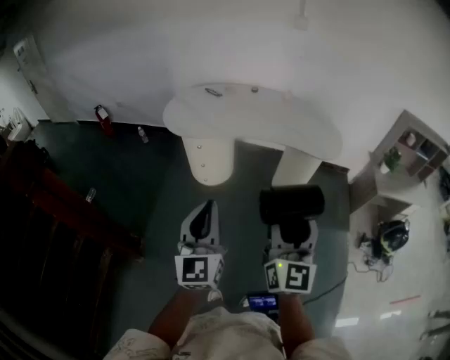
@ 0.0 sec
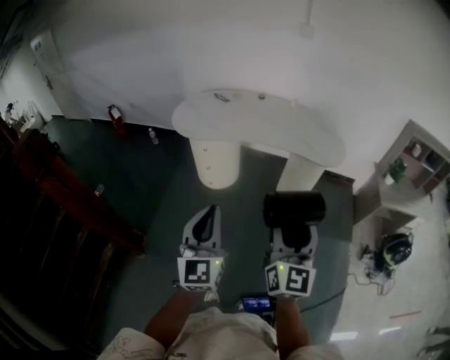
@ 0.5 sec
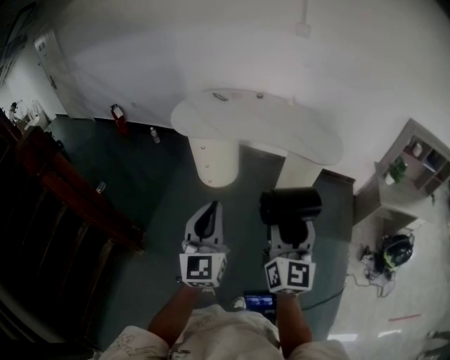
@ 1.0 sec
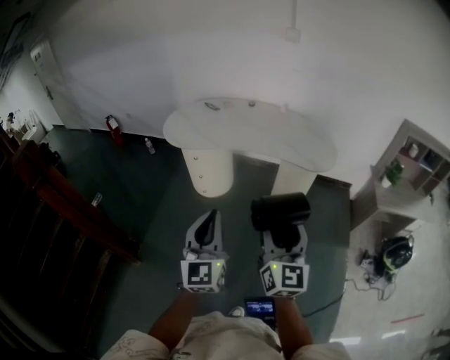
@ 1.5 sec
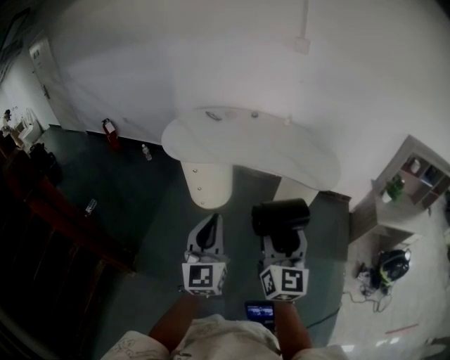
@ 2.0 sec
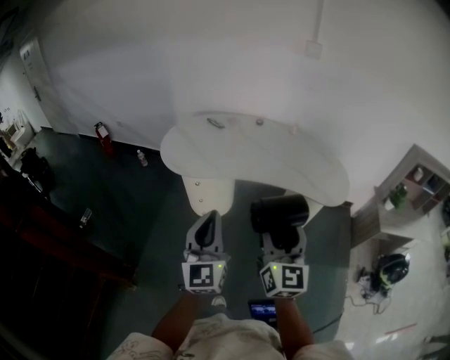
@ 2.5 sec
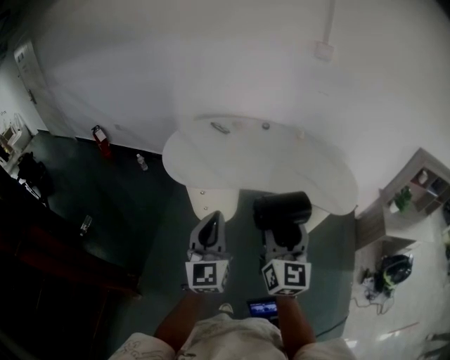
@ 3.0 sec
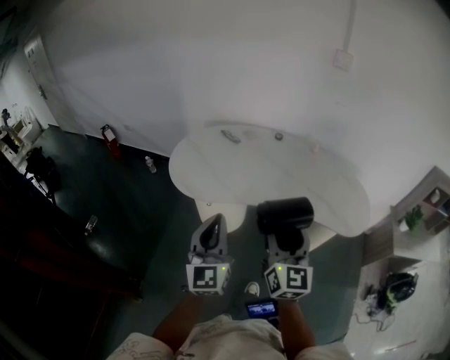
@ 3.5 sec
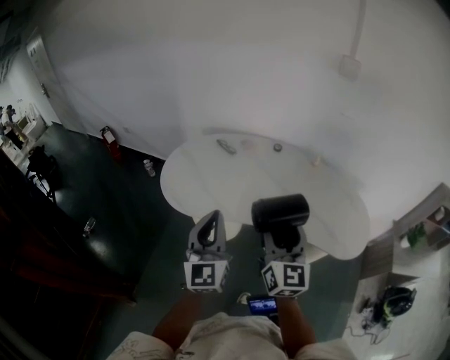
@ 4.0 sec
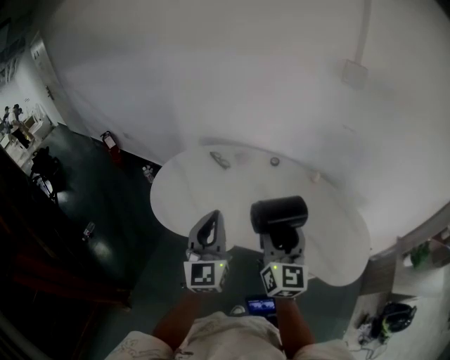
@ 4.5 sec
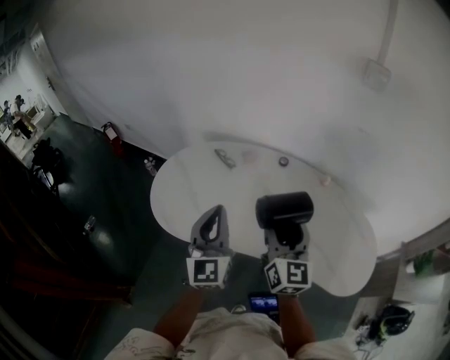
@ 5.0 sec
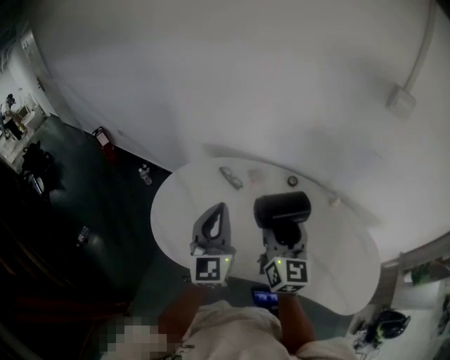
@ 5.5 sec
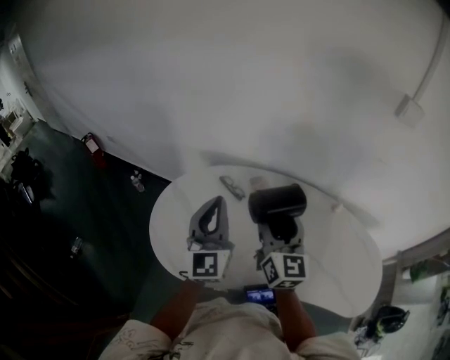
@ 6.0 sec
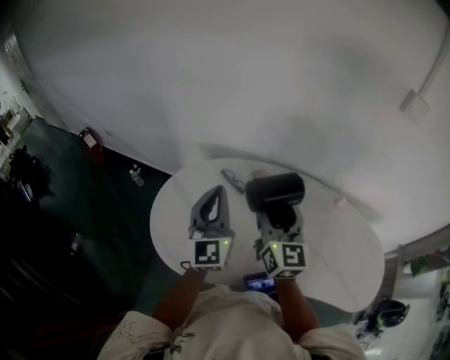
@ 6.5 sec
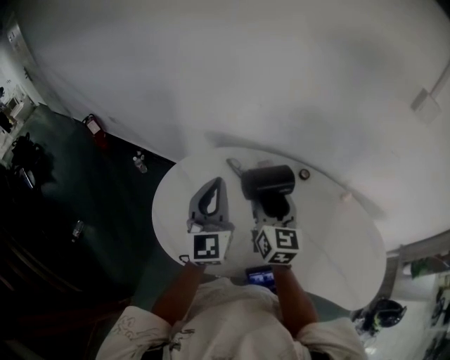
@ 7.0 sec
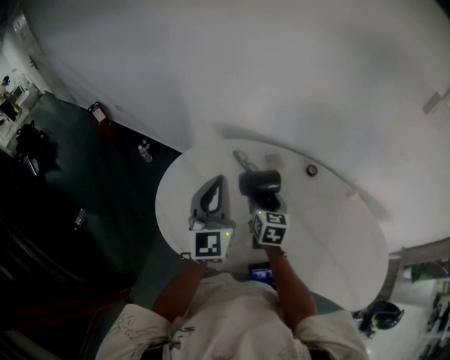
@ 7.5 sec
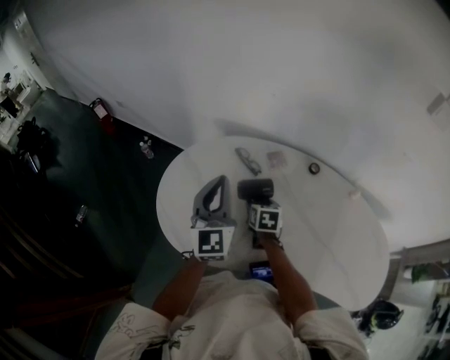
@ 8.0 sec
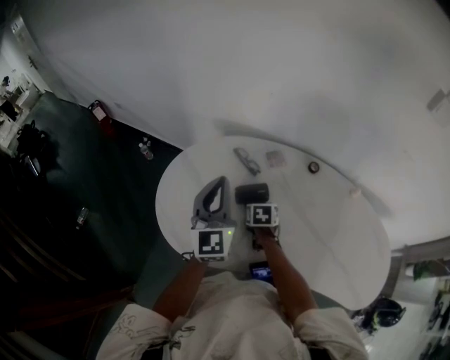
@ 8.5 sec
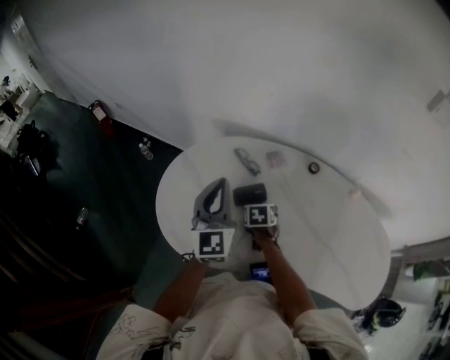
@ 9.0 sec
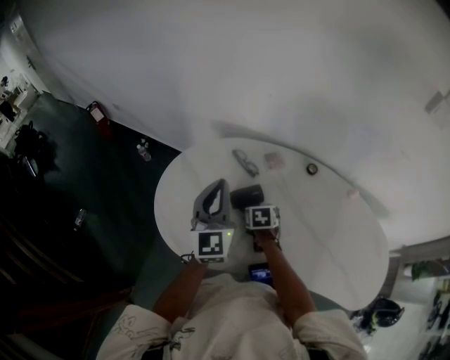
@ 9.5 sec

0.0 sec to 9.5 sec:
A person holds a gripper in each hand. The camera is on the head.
0.0 sec to 2.0 sec: The right gripper shifts some 10 cm forward and to the right. The left gripper moves to the right and forward, approximately 10 cm.
2.0 sec to 4.0 sec: The grippers both shift forward by some 35 cm.
4.0 sec to 5.5 sec: Both grippers travel together forward, about 30 cm.
5.5 sec to 7.5 sec: The left gripper goes roughly 10 cm forward and to the left. Meanwhile the right gripper is displaced downward, forward and to the left by some 25 cm, and tilts its fingers some 30 degrees downward.
7.5 sec to 9.5 sec: The right gripper is displaced downward by about 10 cm, angles its fingers downward, by roughly 40 degrees, and opens its fingers.

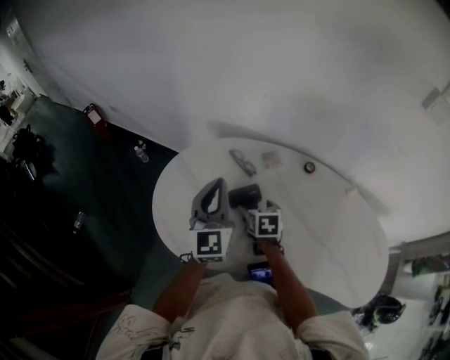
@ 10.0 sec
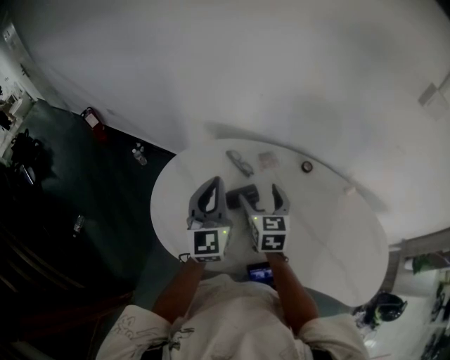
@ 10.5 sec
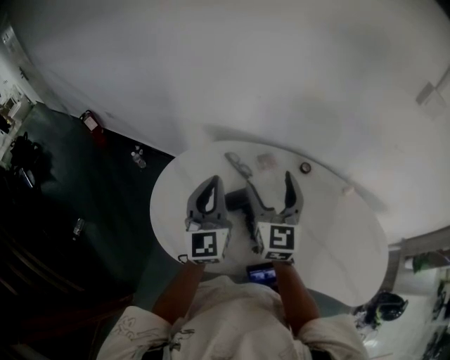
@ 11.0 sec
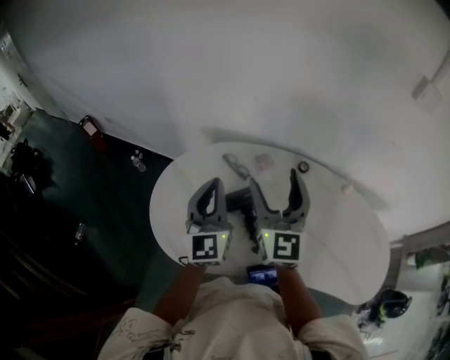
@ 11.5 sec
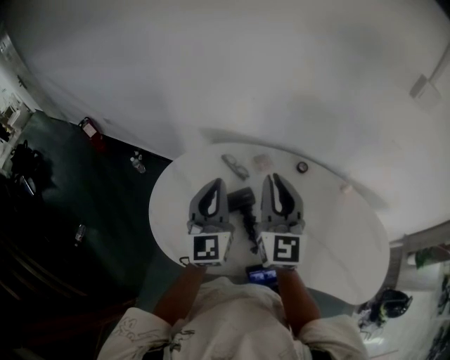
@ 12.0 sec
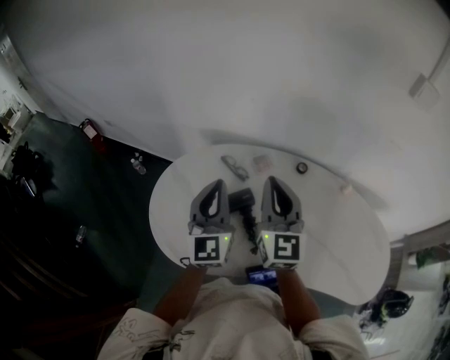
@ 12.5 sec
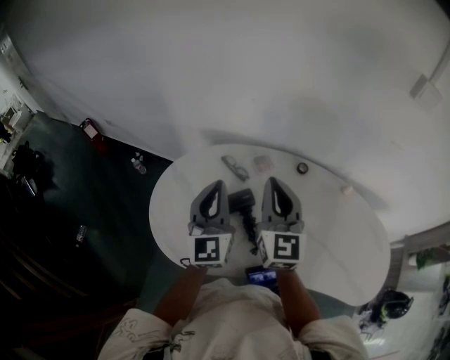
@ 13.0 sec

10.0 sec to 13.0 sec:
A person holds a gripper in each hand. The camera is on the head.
10.0 sec to 11.5 sec: The right gripper goes roughly 30 cm upward, and tips its fingers upward by about 60 degrees.
11.5 sec to 13.0 sec: The right gripper closes.

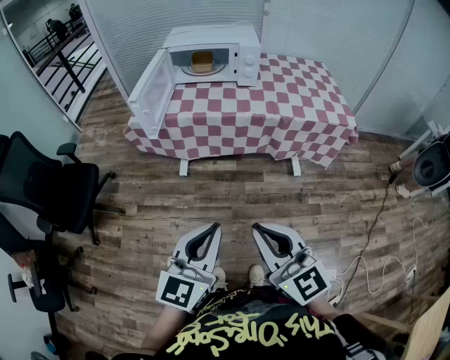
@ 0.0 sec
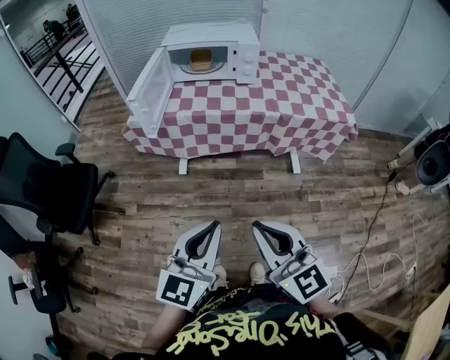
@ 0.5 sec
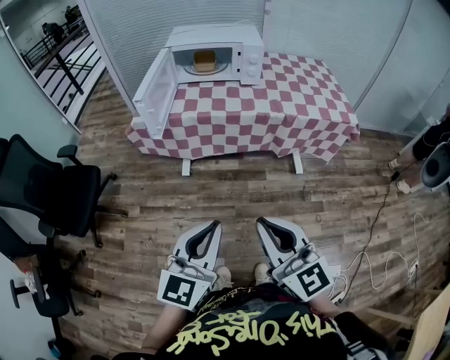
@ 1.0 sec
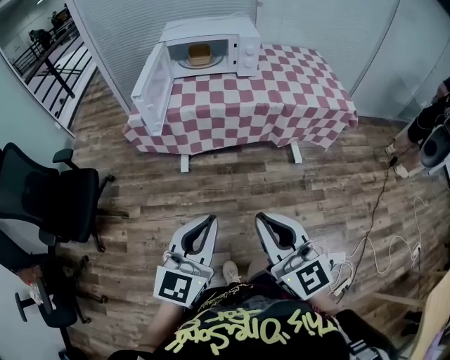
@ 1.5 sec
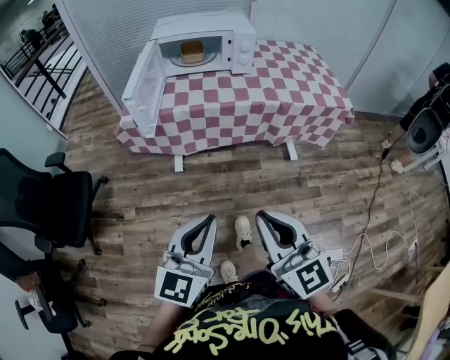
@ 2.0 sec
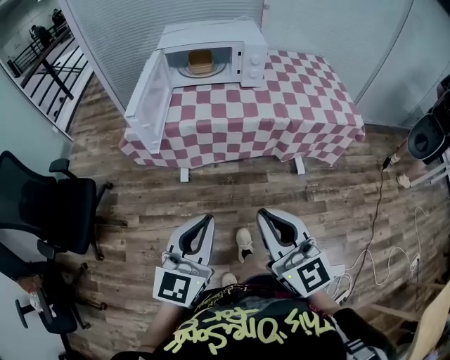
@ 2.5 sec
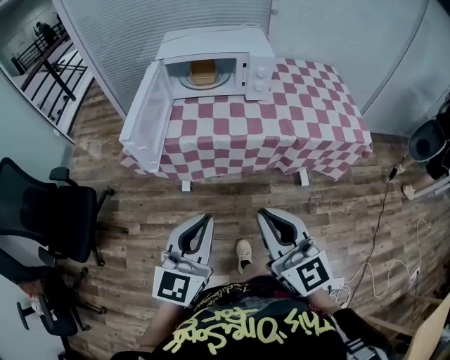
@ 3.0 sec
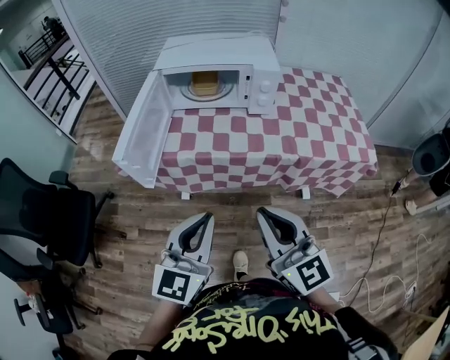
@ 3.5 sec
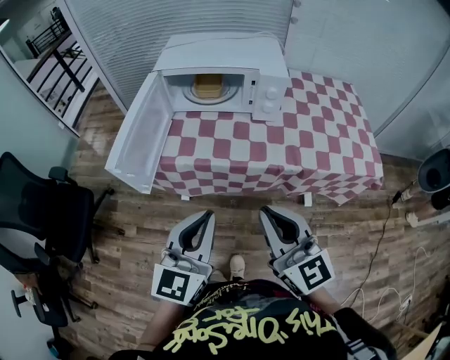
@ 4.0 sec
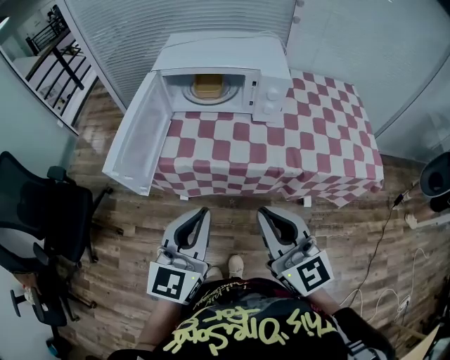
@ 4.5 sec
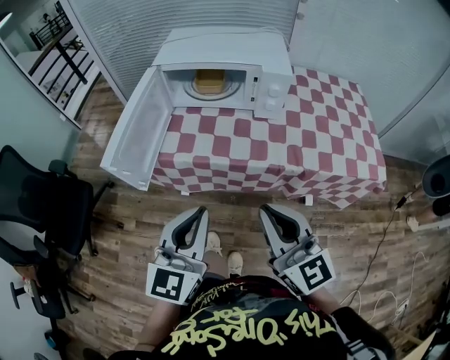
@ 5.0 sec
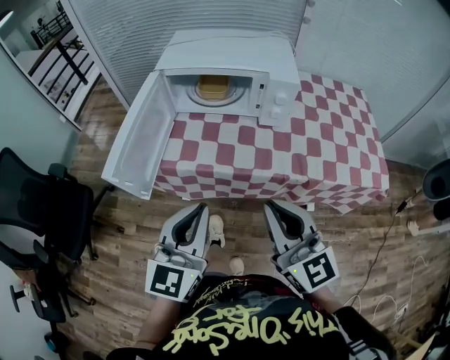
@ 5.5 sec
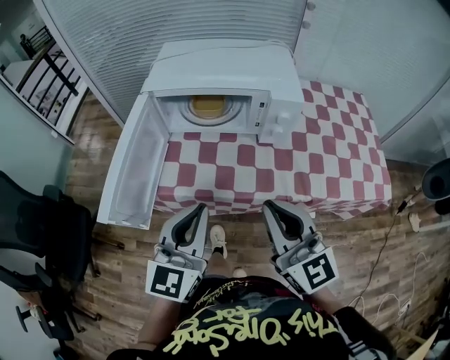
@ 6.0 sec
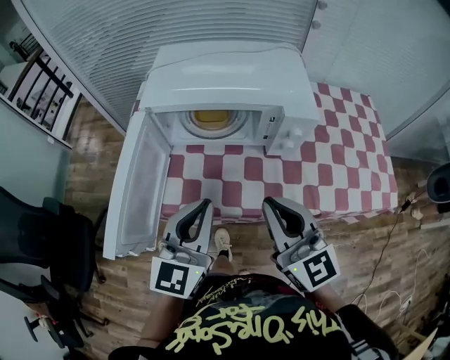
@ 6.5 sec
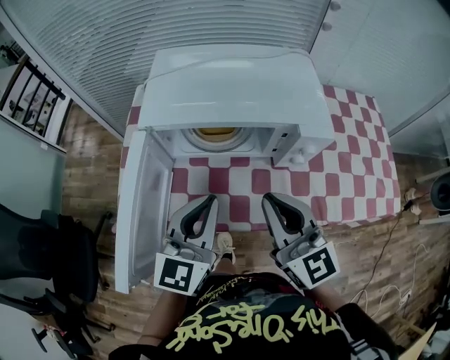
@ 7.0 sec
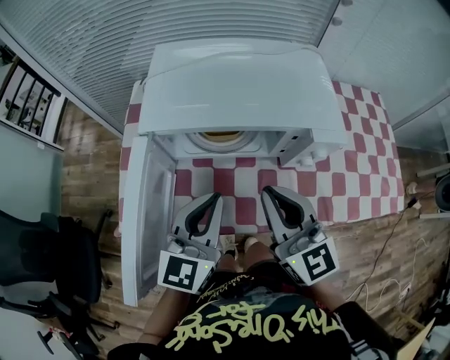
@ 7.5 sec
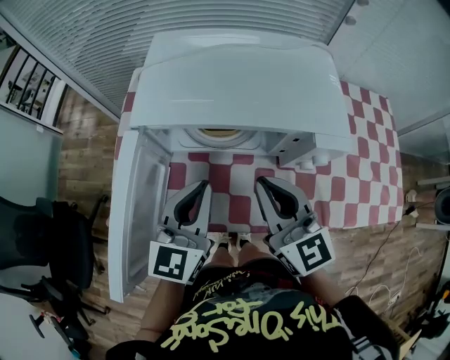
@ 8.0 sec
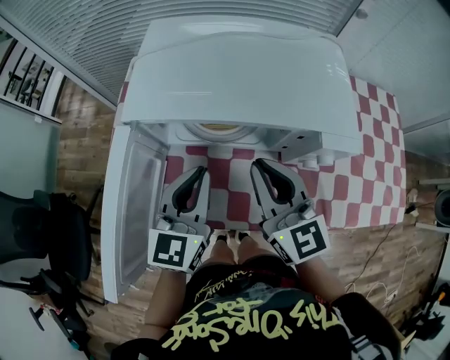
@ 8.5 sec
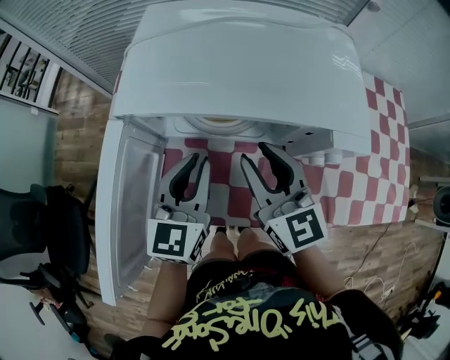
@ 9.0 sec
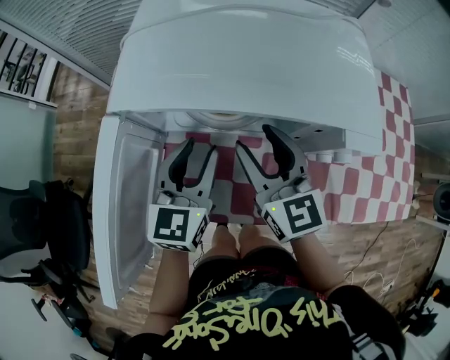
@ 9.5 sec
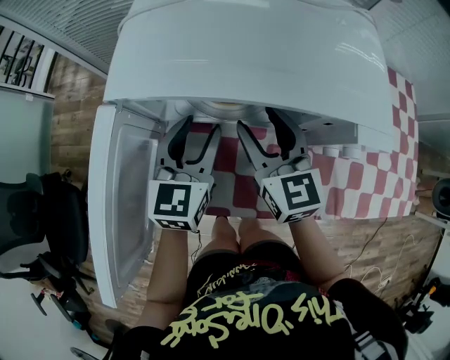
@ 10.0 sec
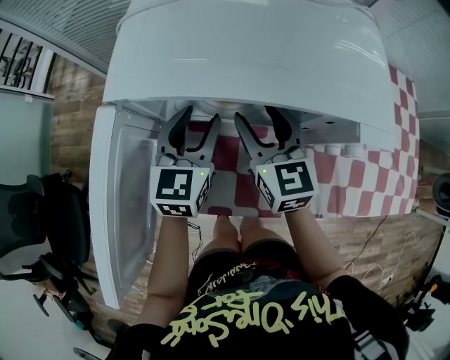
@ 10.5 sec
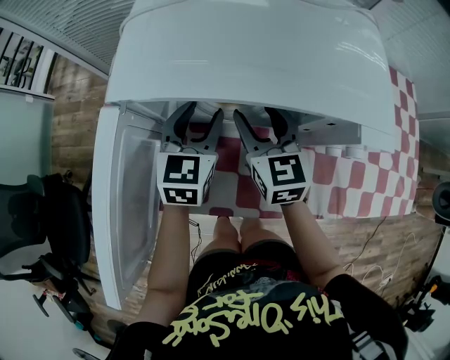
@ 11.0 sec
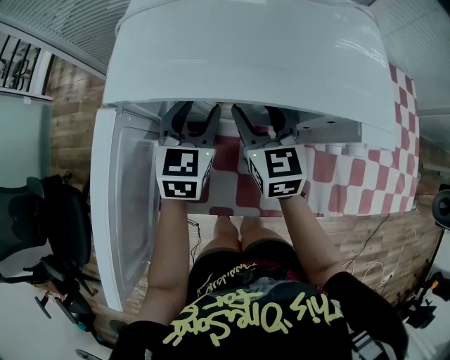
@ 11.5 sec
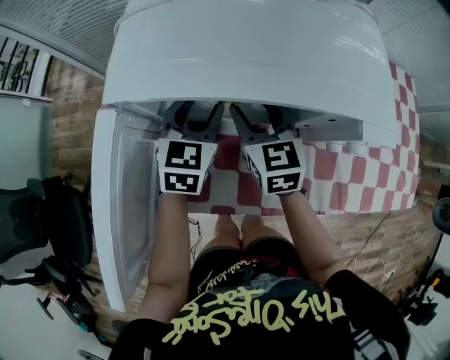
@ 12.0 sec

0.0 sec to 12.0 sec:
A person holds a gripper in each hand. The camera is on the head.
0.0 sec to 2.0 sec: The left gripper is displaced to the left by approximately 5 cm, while the right gripper shifts by some 5 cm.
2.0 sec to 4.0 sec: Both grippers move forward, approximately 25 cm.
4.0 sec to 6.0 sec: The two grippers go approximately 15 cm forward.
6.0 sec to 8.0 sec: Both grippers travel together forward, roughly 20 cm.
8.0 sec to 10.0 sec: The two grippers go approximately 15 cm forward and downward. The right gripper opens its fingers; the left gripper opens.
10.0 sec to 12.0 sec: The left gripper heads forward, covering roughly 5 cm. Meanwhile the right gripper ends up some 5 cm from where it was.

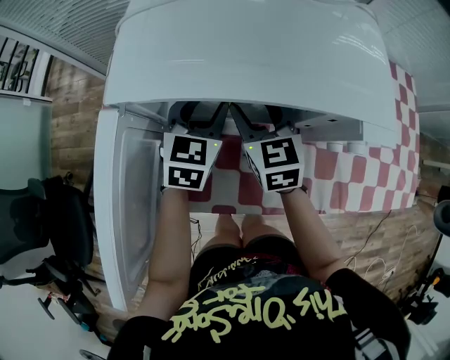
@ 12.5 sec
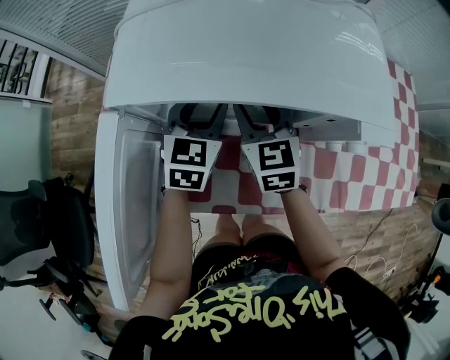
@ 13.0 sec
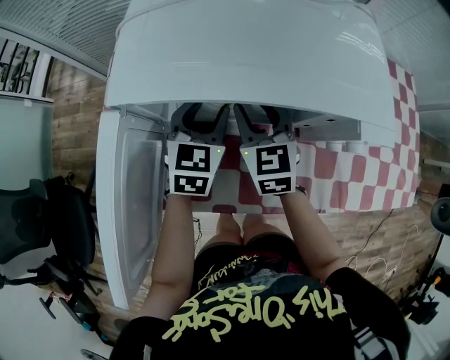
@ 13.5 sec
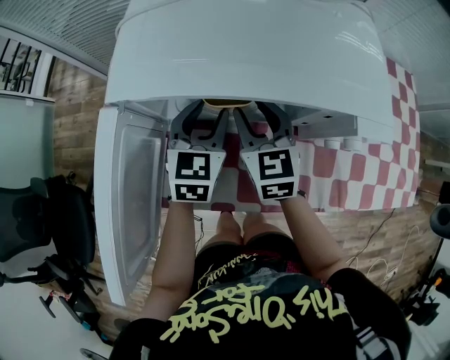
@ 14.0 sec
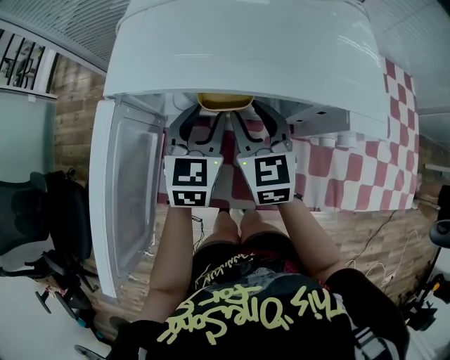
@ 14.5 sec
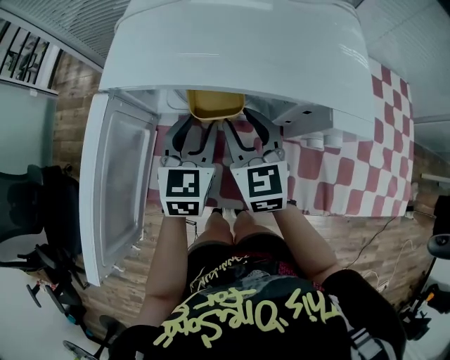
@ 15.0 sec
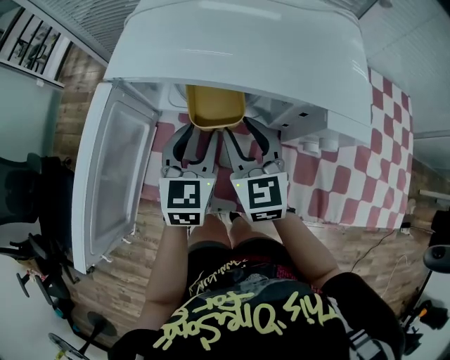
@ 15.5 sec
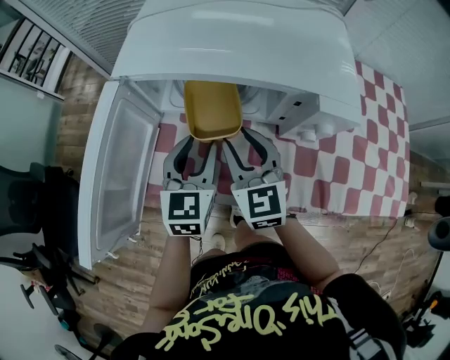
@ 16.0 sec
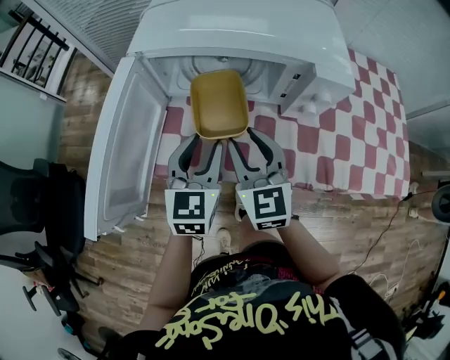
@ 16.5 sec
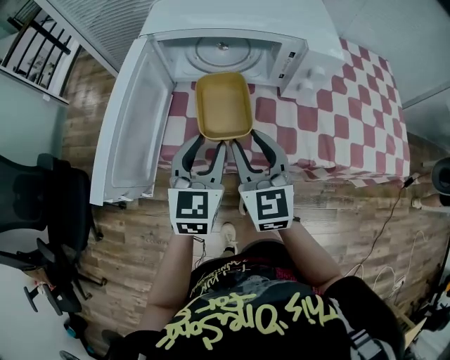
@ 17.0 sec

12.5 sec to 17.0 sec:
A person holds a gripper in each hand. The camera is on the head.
12.5 sec to 14.5 sec: The grippers make only small movements.
14.5 sec to 17.0 sec: The grippers both shift backward by approximately 20 cm.
